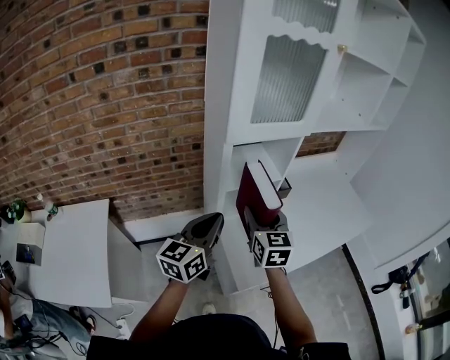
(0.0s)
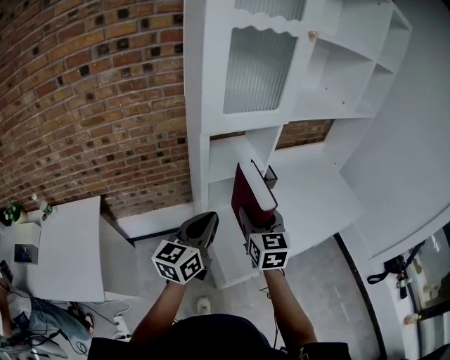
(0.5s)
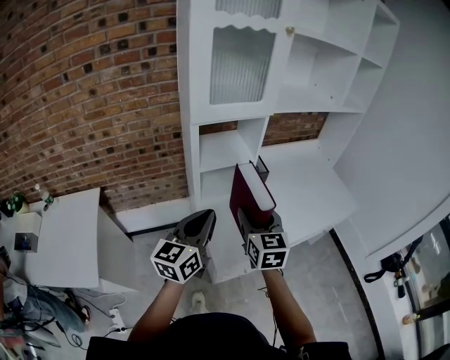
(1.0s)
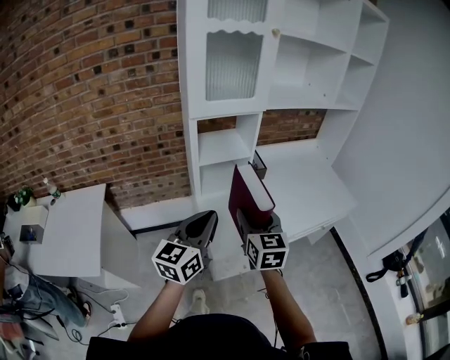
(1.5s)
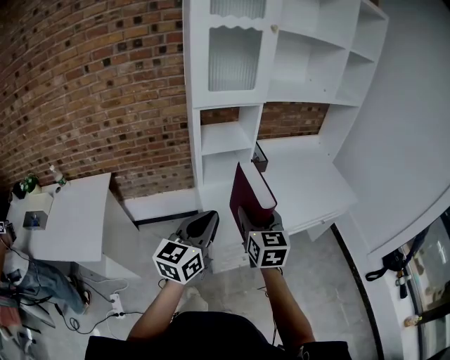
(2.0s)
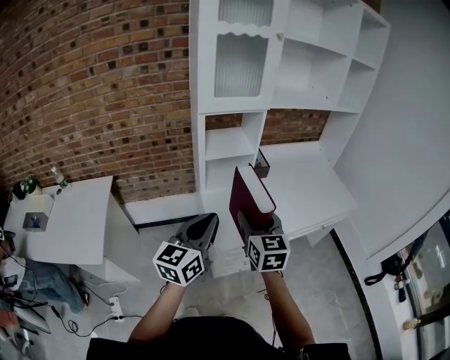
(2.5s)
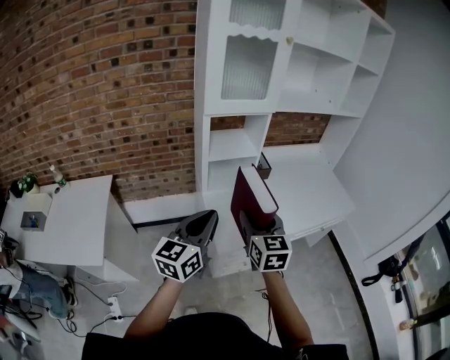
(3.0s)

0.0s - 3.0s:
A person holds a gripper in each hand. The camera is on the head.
0.0s - 1.5s: The grippers both shift backward and to the right by some 20 cm.
1.5s - 3.0s: There are only small adjustments of the grippers.

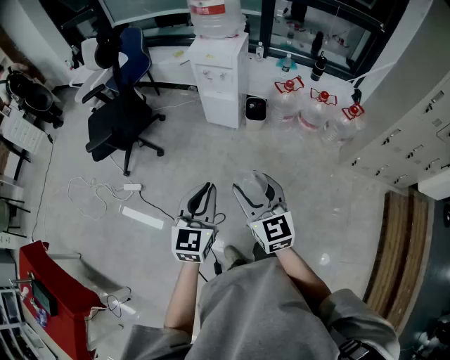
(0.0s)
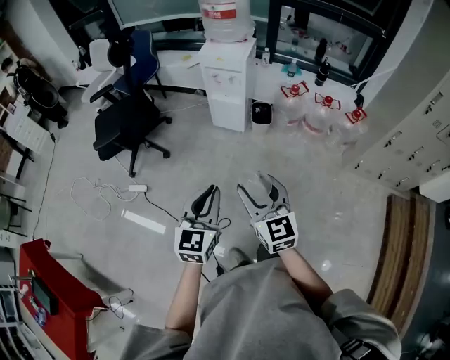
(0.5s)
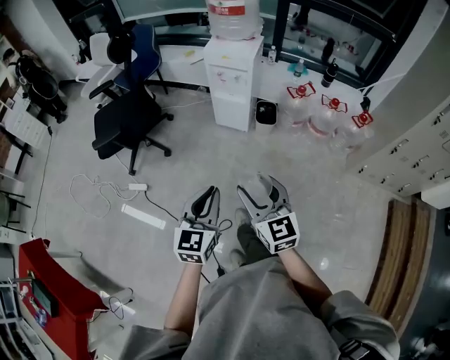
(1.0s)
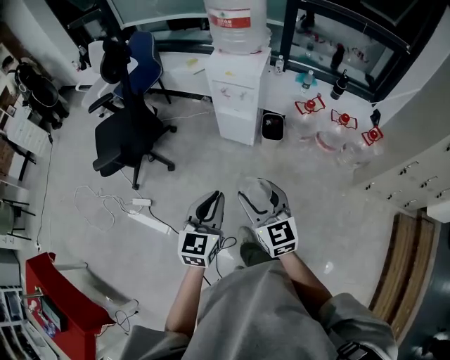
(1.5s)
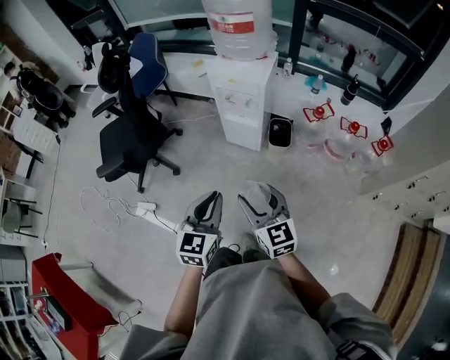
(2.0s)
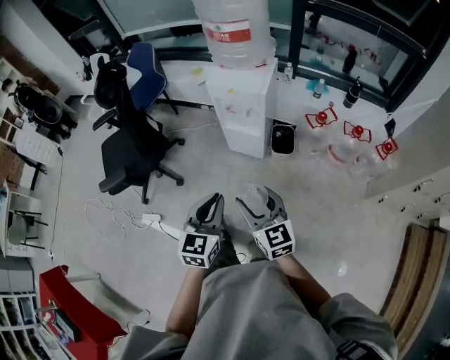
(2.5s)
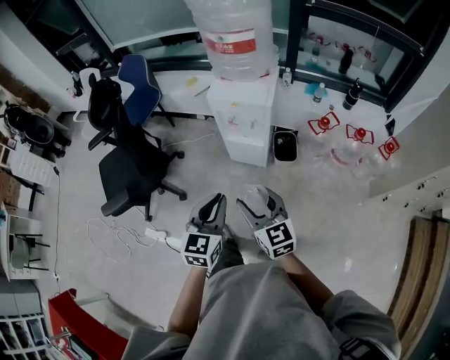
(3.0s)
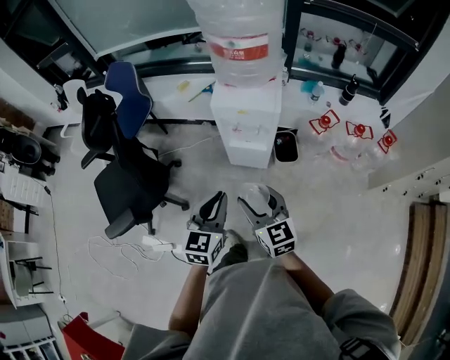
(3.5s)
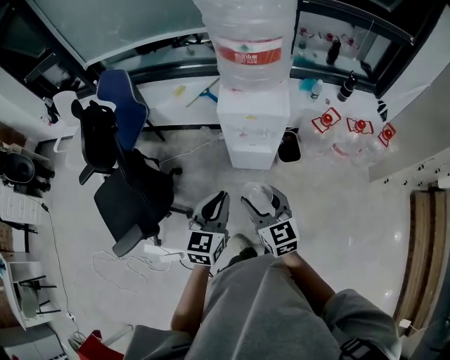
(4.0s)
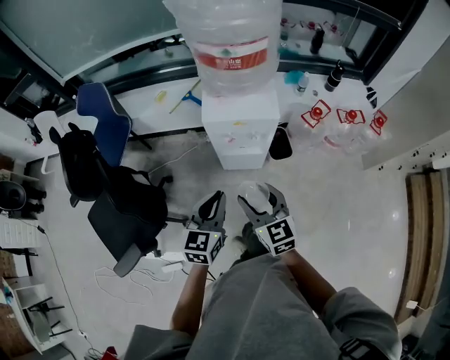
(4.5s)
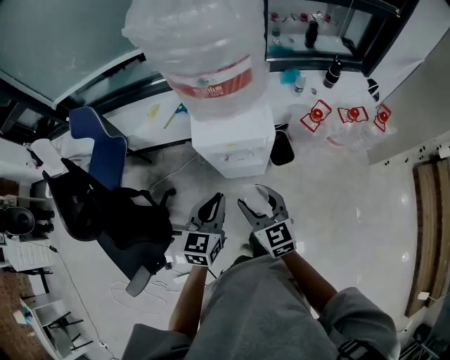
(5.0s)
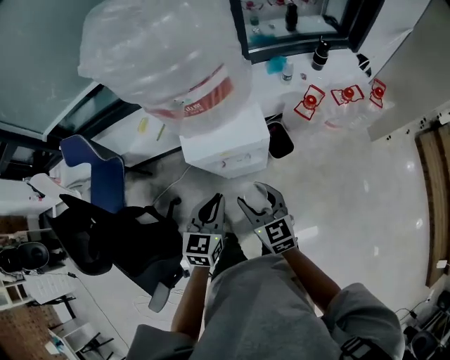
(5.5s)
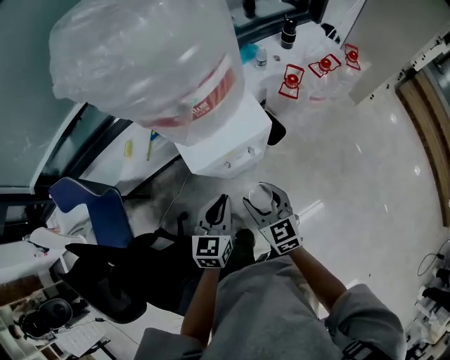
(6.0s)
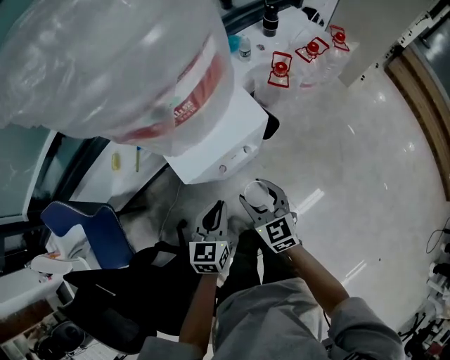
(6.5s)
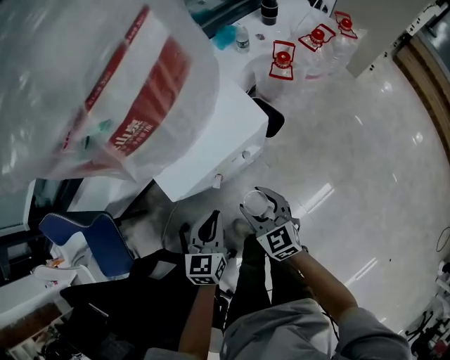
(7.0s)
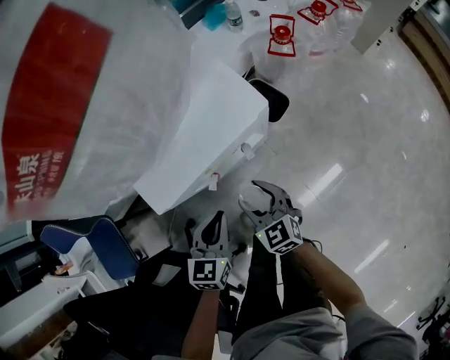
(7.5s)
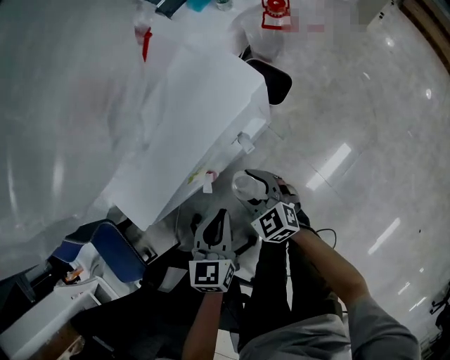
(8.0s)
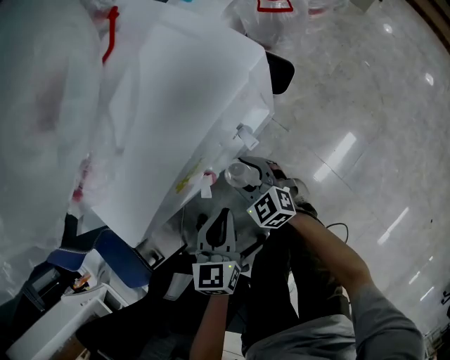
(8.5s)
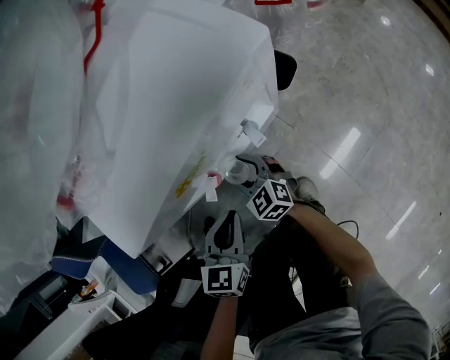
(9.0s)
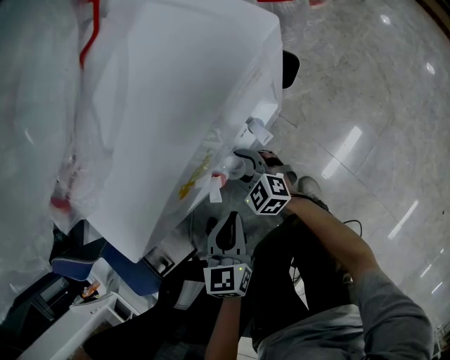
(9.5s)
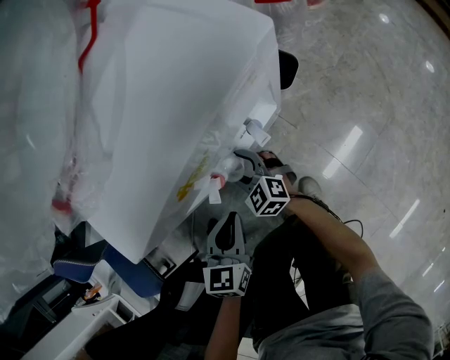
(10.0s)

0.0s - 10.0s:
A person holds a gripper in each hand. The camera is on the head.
0.0s - 2.0s: Both grippers move forward, approximately 20 cm.
2.0s - 4.0s: The grippers both shift forward and to the left by some 30 cm.
4.0s - 6.0s: The right gripper changes place by about 20 cm, and changes its angle by some 30 degrees; the left gripper moves about 25 cm, and changes its angle by roughly 30 degrees.
6.0s - 8.0s: Both grippers move downward, approximately 25 cm.
8.0s - 10.0s: The left gripper is displaced downward by some 10 cm. The right gripper is displaced downward, to the left and forward by some 15 cm.

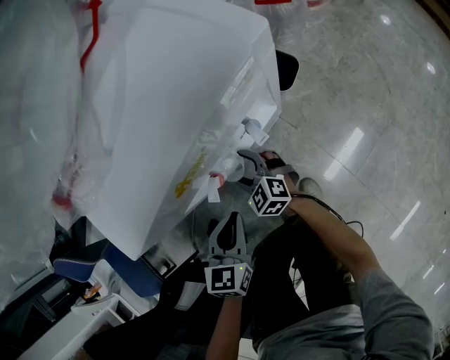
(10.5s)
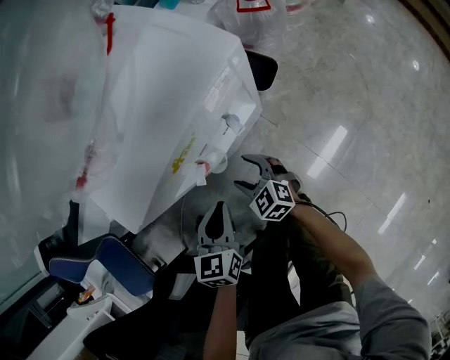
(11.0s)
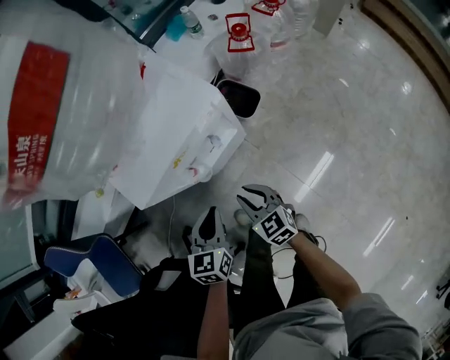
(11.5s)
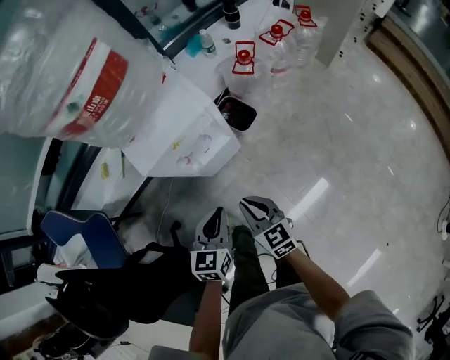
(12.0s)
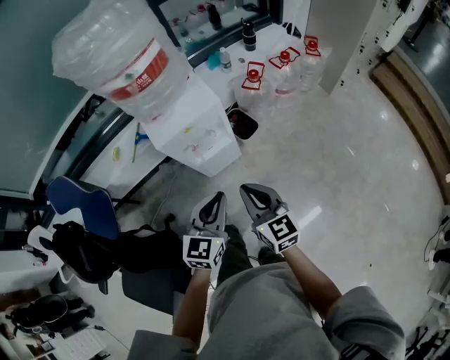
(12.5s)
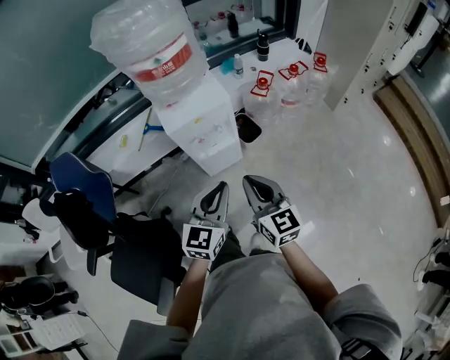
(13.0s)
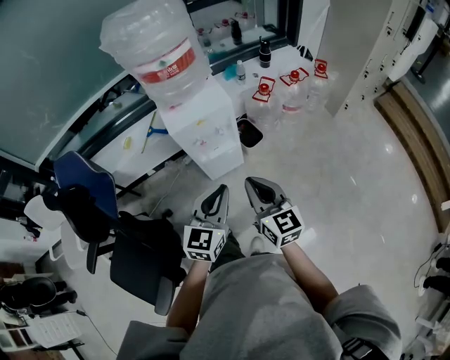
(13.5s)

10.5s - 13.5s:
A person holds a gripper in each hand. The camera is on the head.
10.5s - 12.0s: The left gripper shifts roughly 30 cm upward, to the right and backward; the right gripper shifts approximately 40 cm upward, backward and to the right, swivels roughly 30 degrees, and closes.
12.0s - 13.5s: Both grippers move upward and backward, about 25 cm.

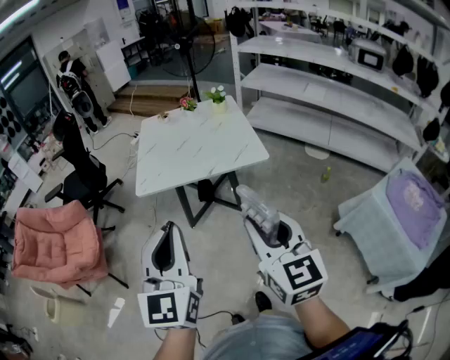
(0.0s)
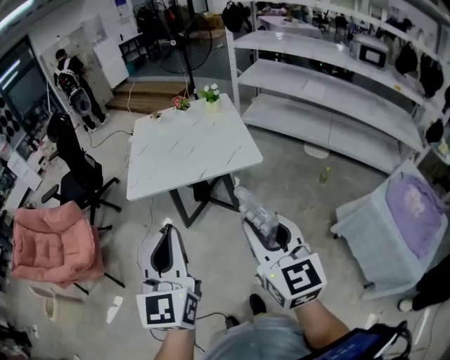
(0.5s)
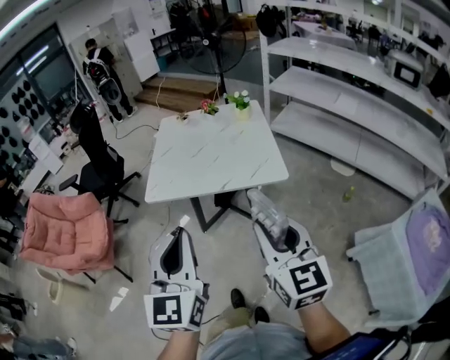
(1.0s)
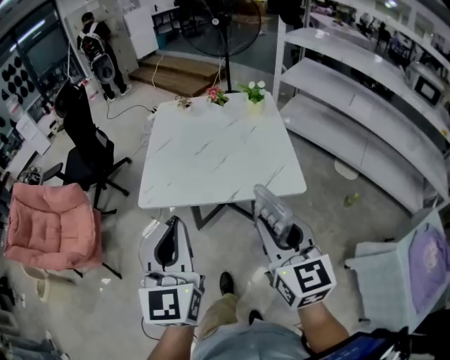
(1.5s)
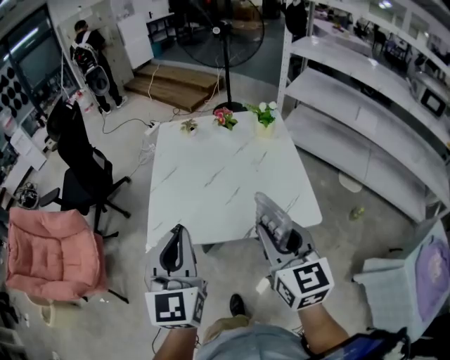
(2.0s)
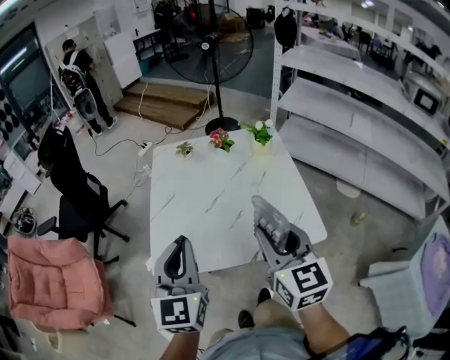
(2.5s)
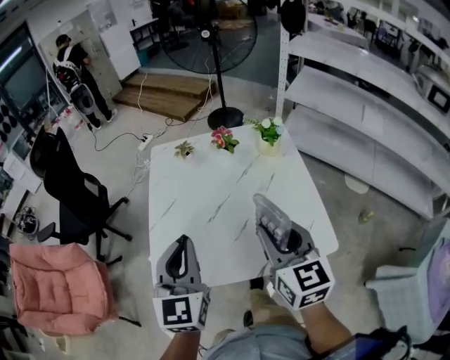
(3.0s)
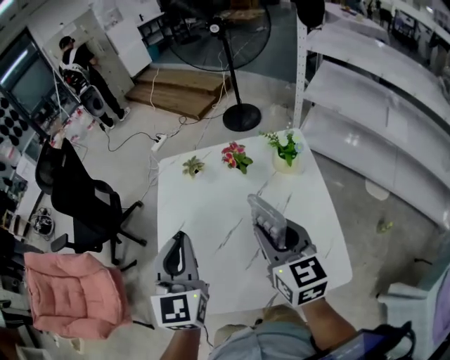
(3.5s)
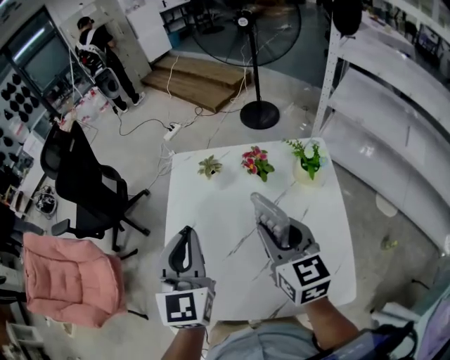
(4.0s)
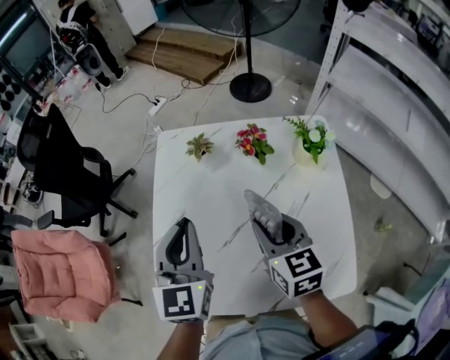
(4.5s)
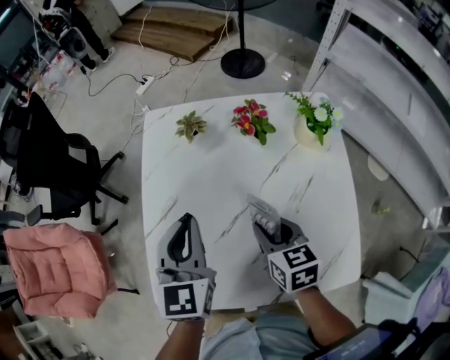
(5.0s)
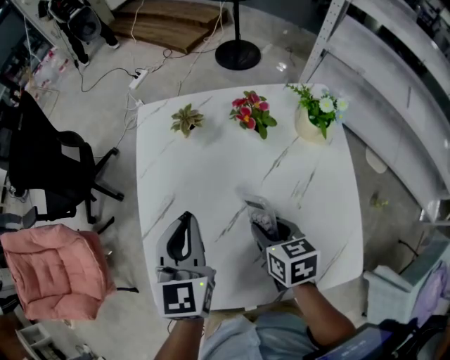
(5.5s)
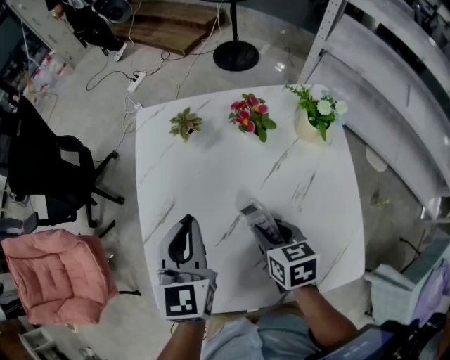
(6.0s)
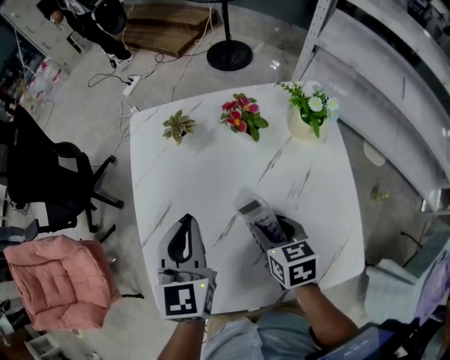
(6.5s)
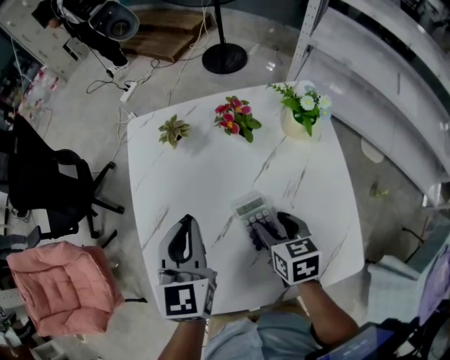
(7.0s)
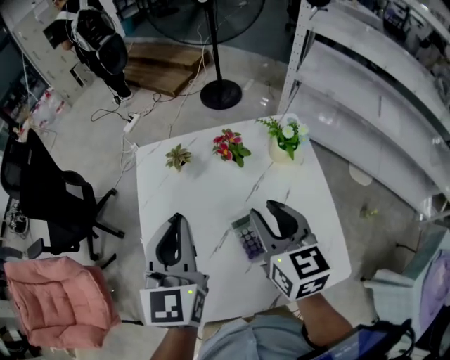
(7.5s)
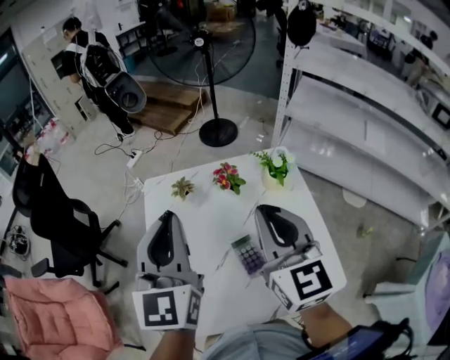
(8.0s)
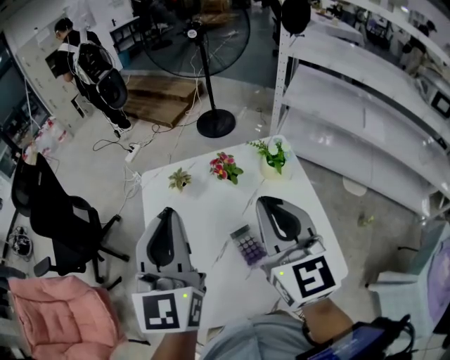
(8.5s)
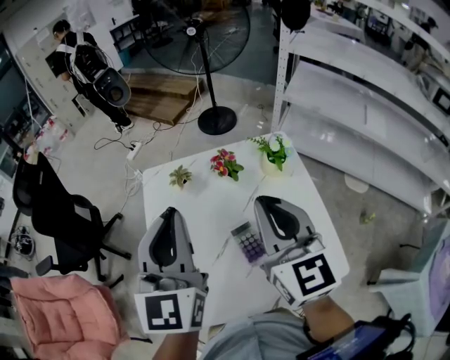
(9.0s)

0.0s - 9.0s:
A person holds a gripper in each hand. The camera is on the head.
0.0s - 2.0s: Both grippers travel together forward, roughly 35 cm.
2.0s - 4.5s: The two grippers go some 35 cm forward. The right gripper rotates some 20 degrees.
4.5s - 7.0s: The left gripper shifts roughly 5 cm downward, while the right gripper is displaced downward by about 15 cm, changes its angle by approximately 20 degrees, and opens.
7.0s - 9.0s: The two grippers go about 30 cm upward. The right gripper tips its fingers upward by about 40 degrees, and closes up. Meanwhile the left gripper changes its angle by about 30 degrees.

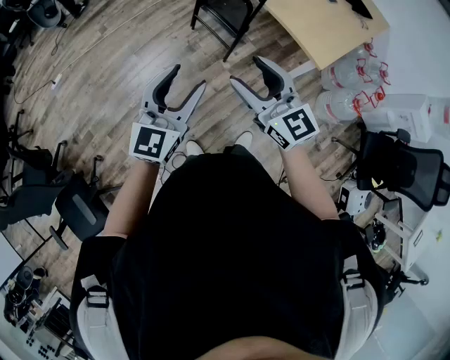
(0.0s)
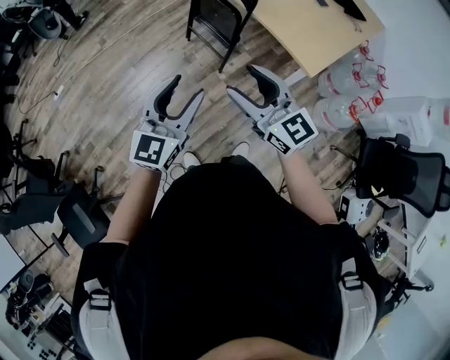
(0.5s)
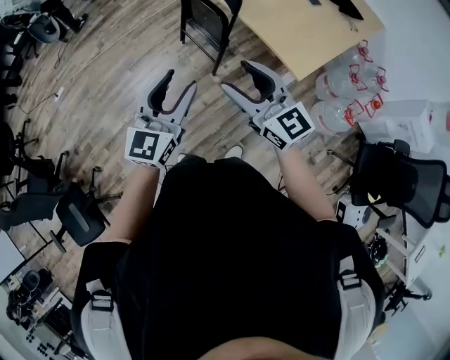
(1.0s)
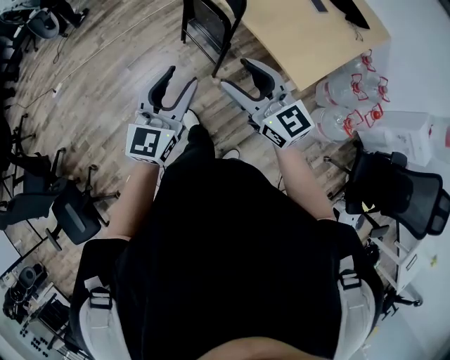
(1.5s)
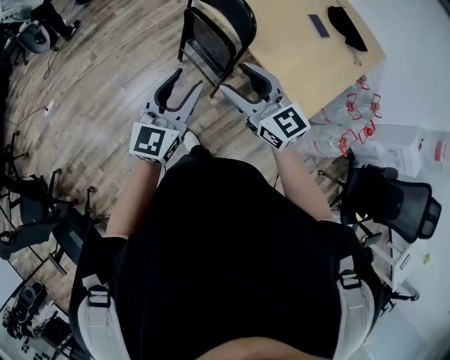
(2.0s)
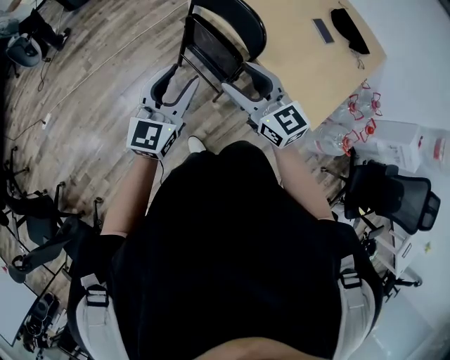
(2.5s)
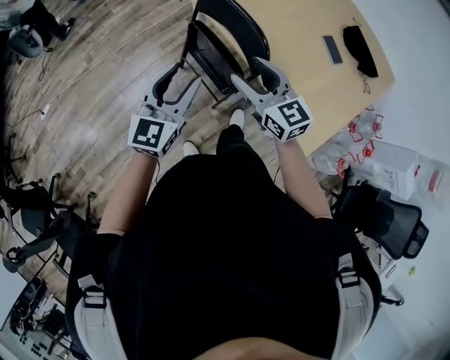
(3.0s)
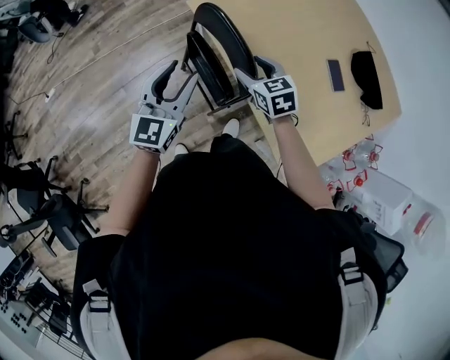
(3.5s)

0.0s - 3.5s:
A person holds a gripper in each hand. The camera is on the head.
0.0s - 2.0s: The right gripper moves forward, some 25 cm. Meanwhile the left gripper goes roughly 25 cm forward and to the right.
2.0s - 3.5s: The right gripper travels forward and downward by approximately 40 cm, and tips its fingers downward by roughly 30 degrees, while the left gripper shifts approximately 30 cm forward.
